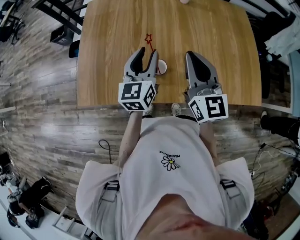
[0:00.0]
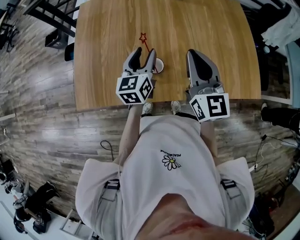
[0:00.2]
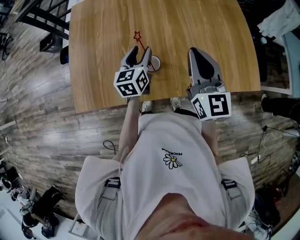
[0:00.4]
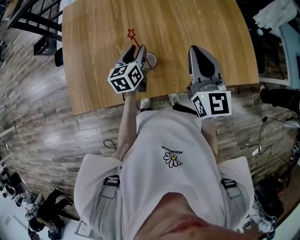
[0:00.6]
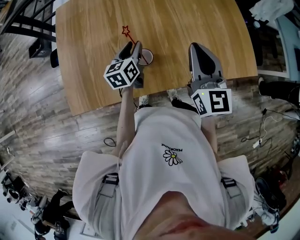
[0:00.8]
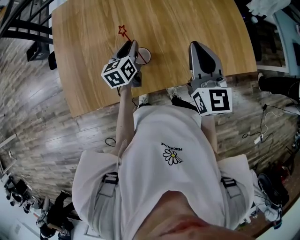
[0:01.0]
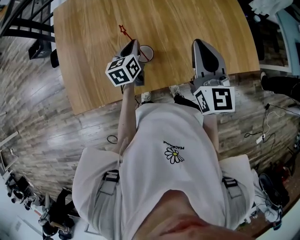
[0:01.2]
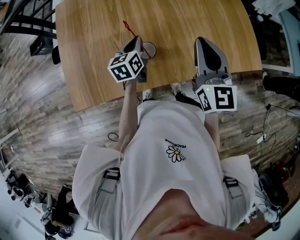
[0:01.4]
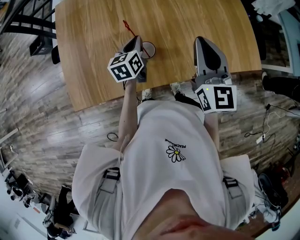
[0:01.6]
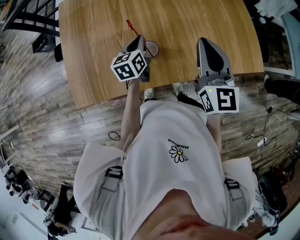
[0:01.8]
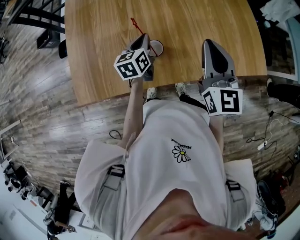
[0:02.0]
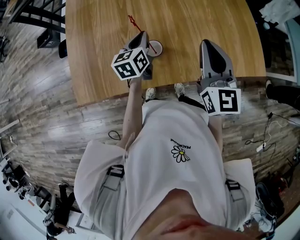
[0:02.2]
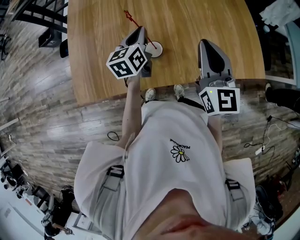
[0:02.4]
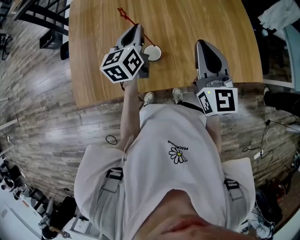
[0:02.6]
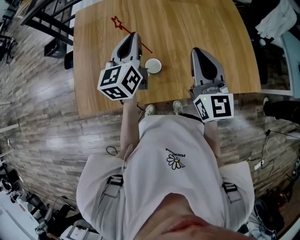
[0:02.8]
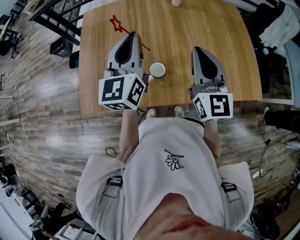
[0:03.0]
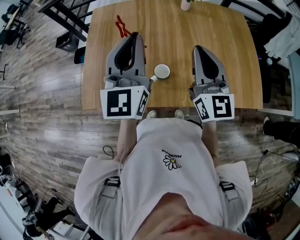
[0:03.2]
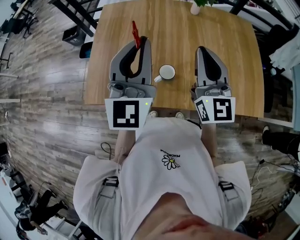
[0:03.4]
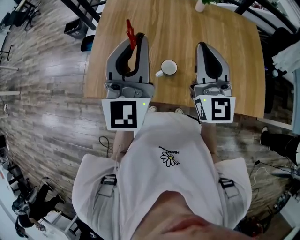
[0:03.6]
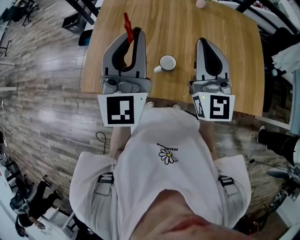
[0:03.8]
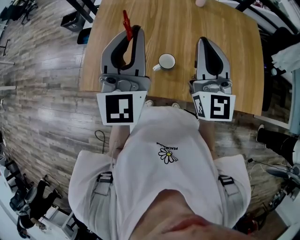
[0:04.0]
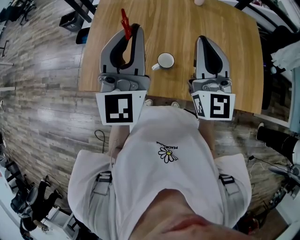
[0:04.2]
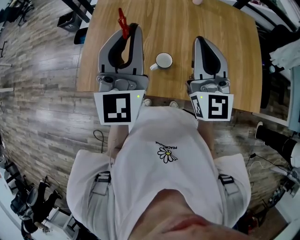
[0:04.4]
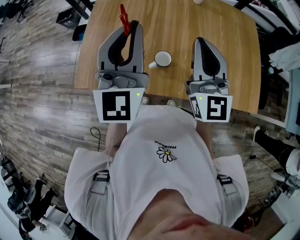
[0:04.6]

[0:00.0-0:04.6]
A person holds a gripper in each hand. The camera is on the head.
0:00.0 to 0:01.6: The right gripper travels to the right by roughly 5 cm, while the left gripper heads downward, covering roughly 15 cm, turns by some 30 degrees, and closes up.
0:01.6 to 0:03.0: The right gripper shifts by roughly 5 cm. Meanwhile the left gripper moves upward, about 25 cm, and tips its fingers upward by about 30 degrees.
0:03.0 to 0:04.6: The left gripper travels upward and backward by roughly 10 cm, and swivels about 20 degrees, while the right gripper shifts roughly 5 cm to the left.

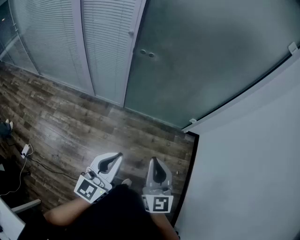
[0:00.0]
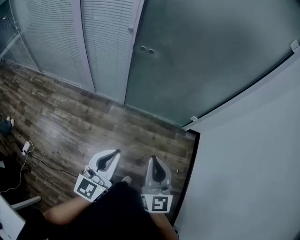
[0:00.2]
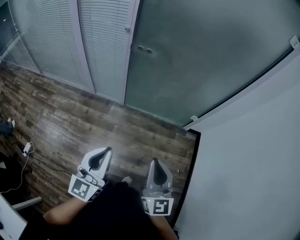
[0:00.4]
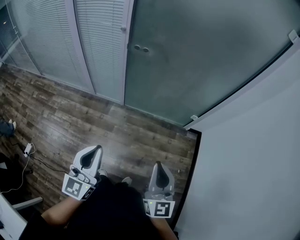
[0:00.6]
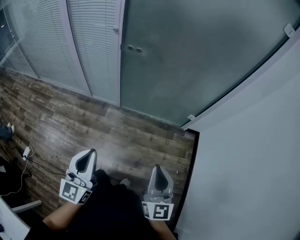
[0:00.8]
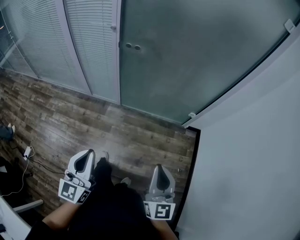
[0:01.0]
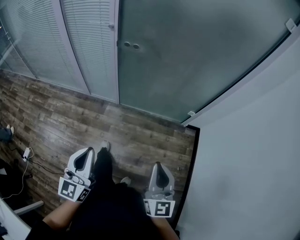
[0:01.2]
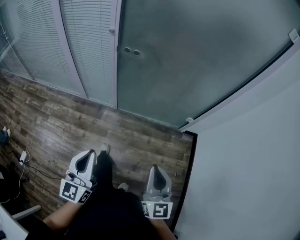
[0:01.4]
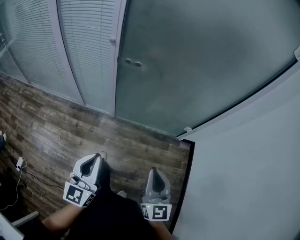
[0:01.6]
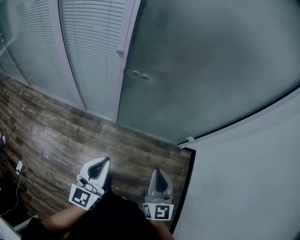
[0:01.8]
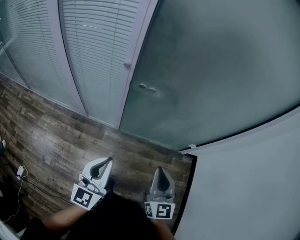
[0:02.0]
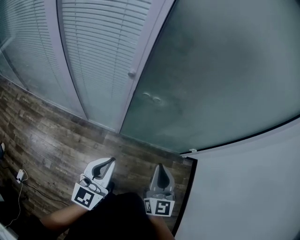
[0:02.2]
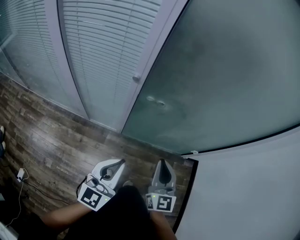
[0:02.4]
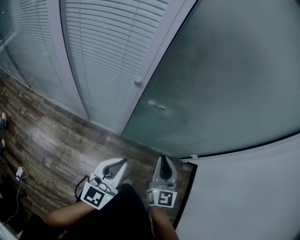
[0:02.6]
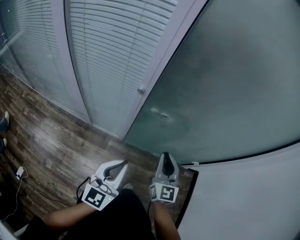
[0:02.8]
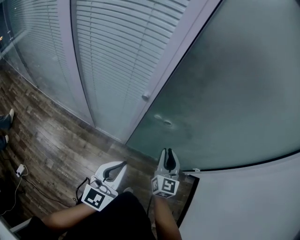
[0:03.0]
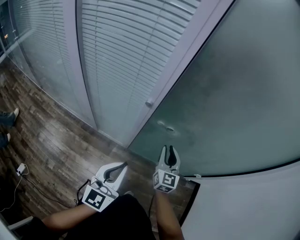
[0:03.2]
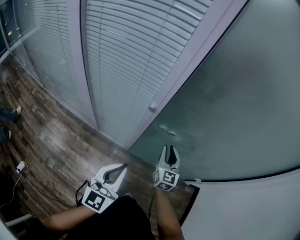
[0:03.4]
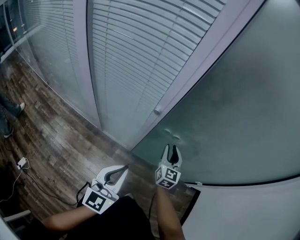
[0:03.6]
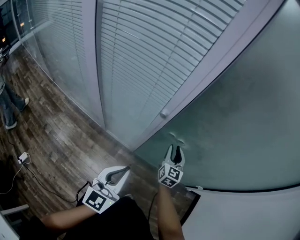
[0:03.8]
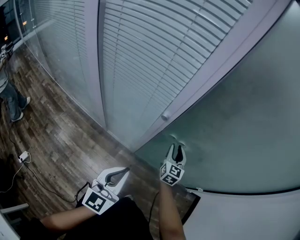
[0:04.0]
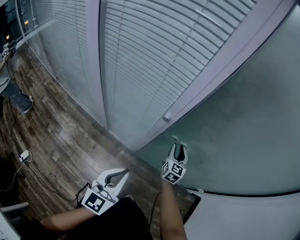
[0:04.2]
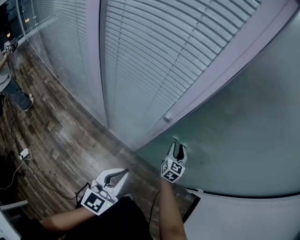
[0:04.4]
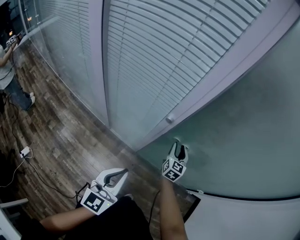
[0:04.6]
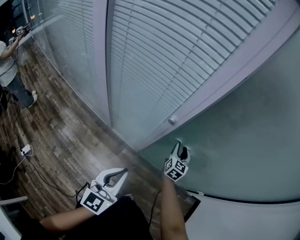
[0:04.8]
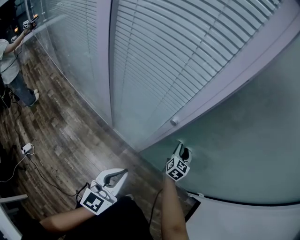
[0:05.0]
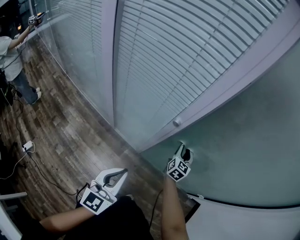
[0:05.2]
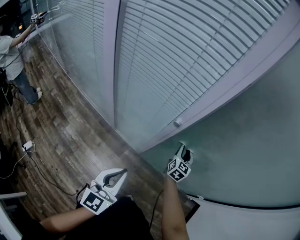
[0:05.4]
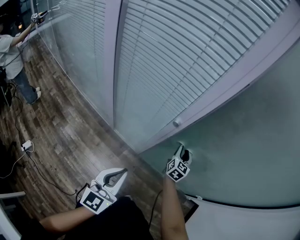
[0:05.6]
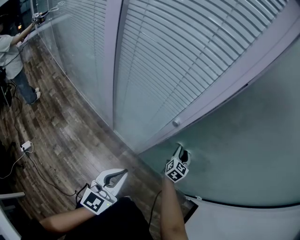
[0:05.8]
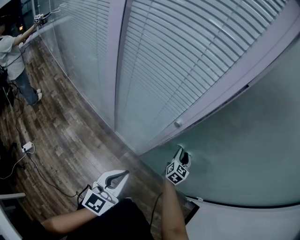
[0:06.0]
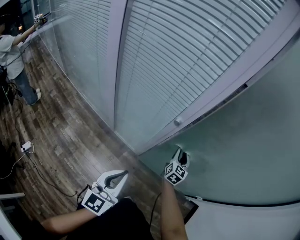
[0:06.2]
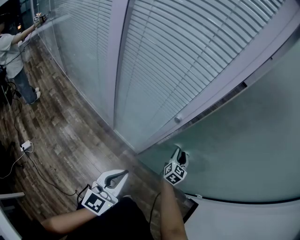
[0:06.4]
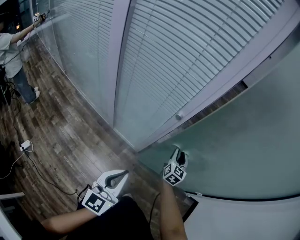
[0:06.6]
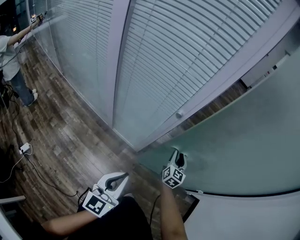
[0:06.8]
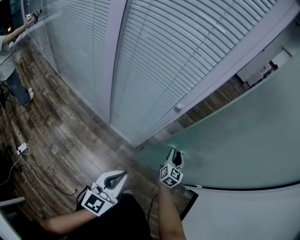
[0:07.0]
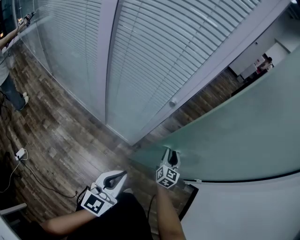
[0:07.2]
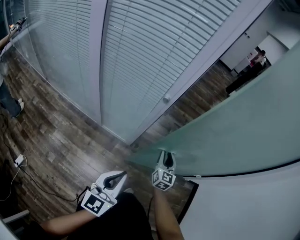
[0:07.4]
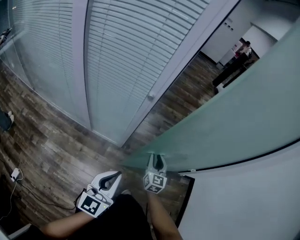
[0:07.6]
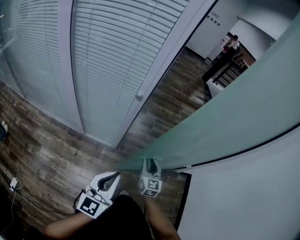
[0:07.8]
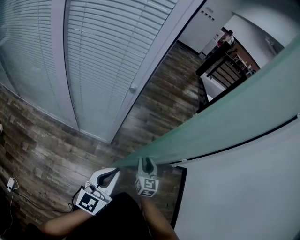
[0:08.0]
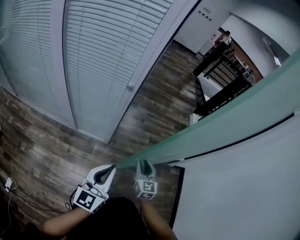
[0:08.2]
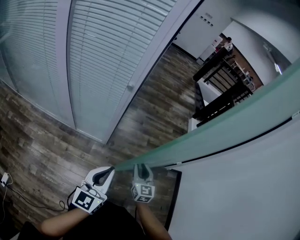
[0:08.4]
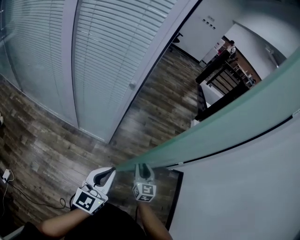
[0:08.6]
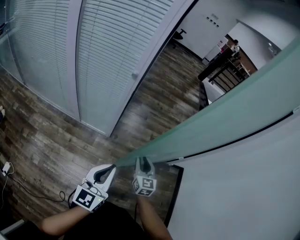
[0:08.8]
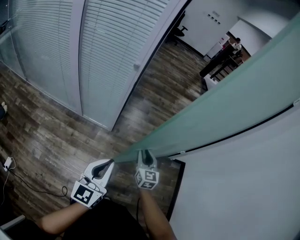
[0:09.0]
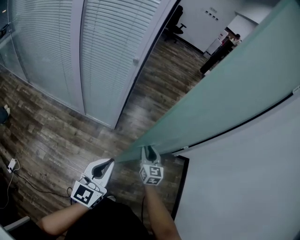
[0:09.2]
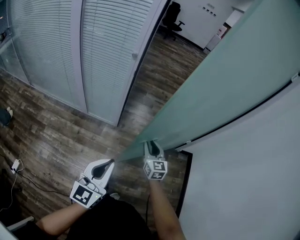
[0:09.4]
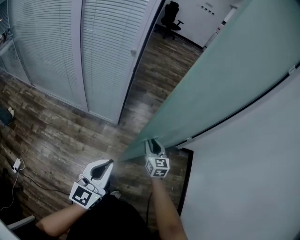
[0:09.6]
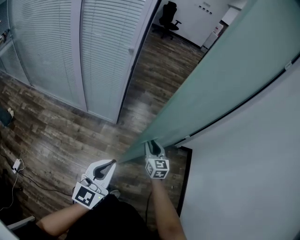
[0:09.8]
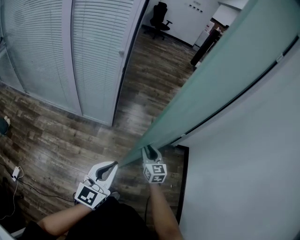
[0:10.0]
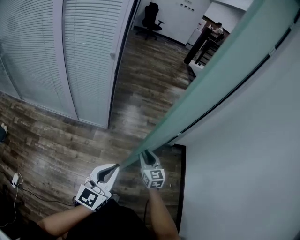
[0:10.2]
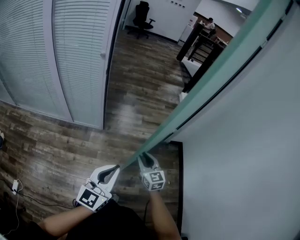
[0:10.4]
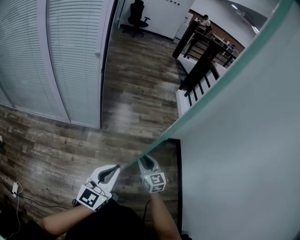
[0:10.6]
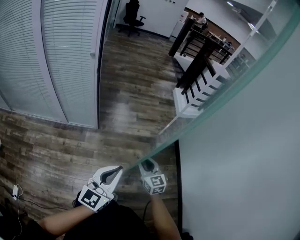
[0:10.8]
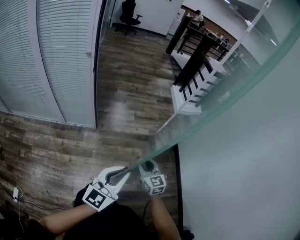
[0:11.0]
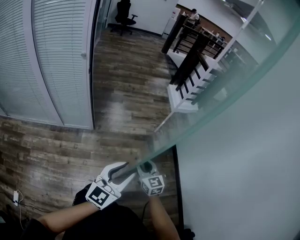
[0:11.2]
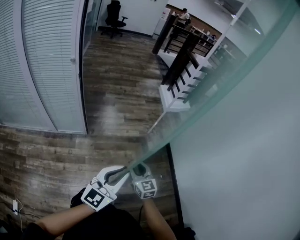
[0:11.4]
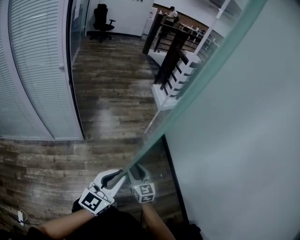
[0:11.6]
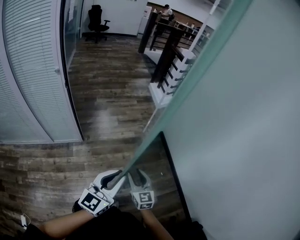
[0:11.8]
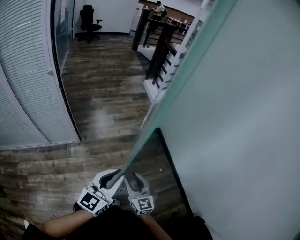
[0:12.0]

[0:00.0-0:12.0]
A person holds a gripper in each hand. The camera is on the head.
0:00.0 to 0:01.6: Both grippers move forward, some 10 cm.
0:01.6 to 0:03.0: The left gripper travels forward by approximately 20 cm, while the right gripper moves forward, some 35 cm.
0:03.0 to 0:04.4: The right gripper shifts roughly 20 cm forward and downward.
0:04.4 to 0:06.0: The grippers make only small movements.
0:06.0 to 0:07.6: The right gripper shifts some 20 cm backward. Meanwhile the left gripper is displaced backward by roughly 5 cm.
0:07.6 to 0:09.0: The left gripper heads backward and to the right, covering some 10 cm. Meanwhile the right gripper is displaced backward by roughly 15 cm.
0:09.0 to 0:10.4: Both grippers move backward and to the right, approximately 15 cm.
0:10.4 to 0:12.0: The left gripper heads to the right, covering some 10 cm, and turns by approximately 20 degrees, while the right gripper is displaced backward and to the right by about 15 cm, and changes its angle by approximately 20 degrees.

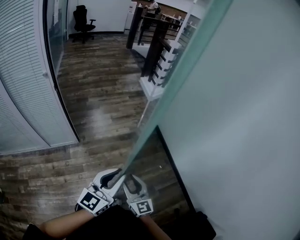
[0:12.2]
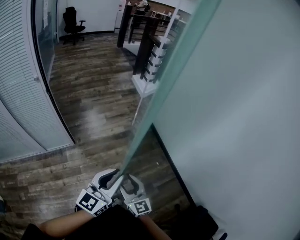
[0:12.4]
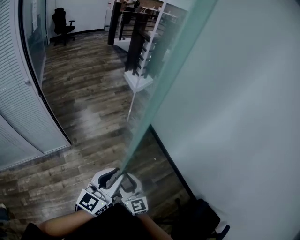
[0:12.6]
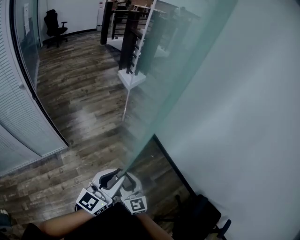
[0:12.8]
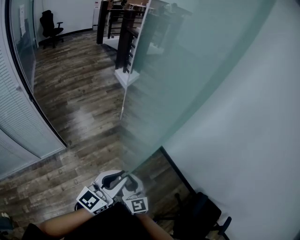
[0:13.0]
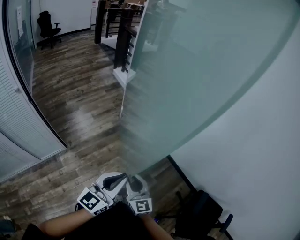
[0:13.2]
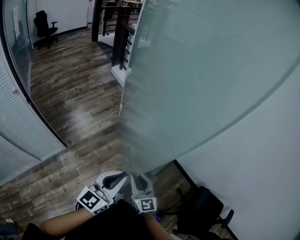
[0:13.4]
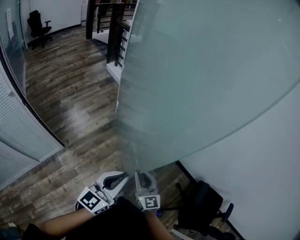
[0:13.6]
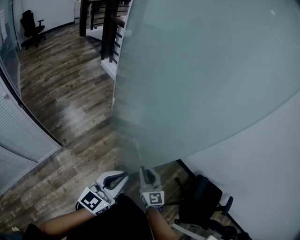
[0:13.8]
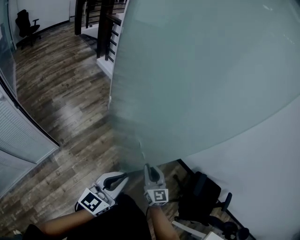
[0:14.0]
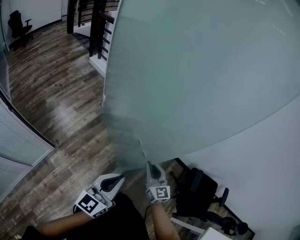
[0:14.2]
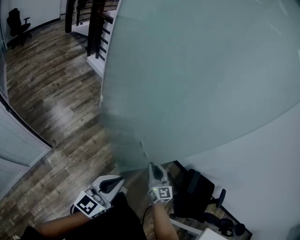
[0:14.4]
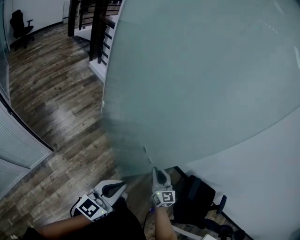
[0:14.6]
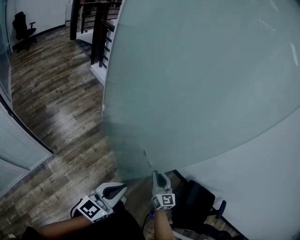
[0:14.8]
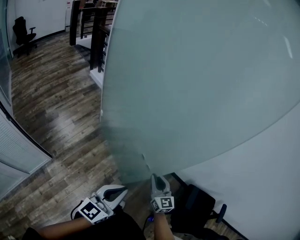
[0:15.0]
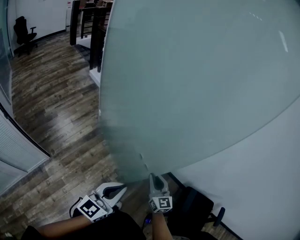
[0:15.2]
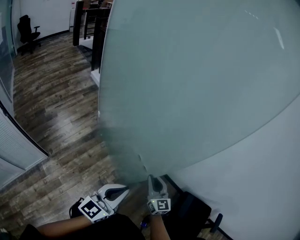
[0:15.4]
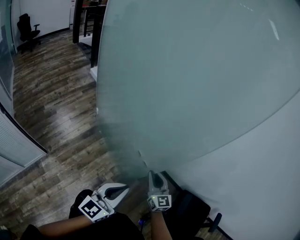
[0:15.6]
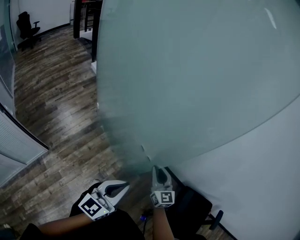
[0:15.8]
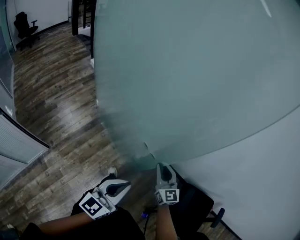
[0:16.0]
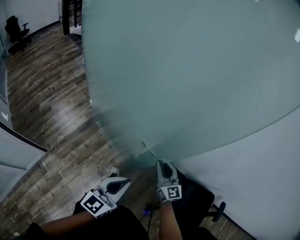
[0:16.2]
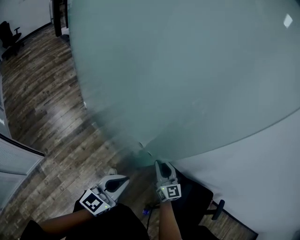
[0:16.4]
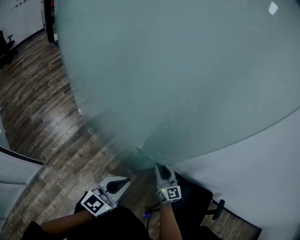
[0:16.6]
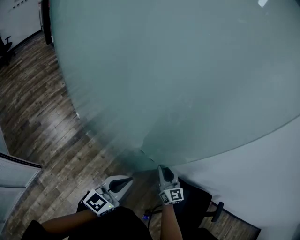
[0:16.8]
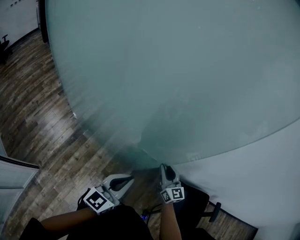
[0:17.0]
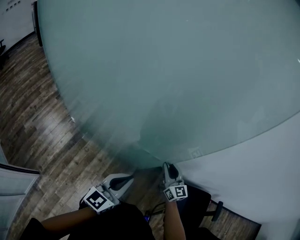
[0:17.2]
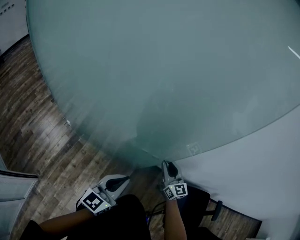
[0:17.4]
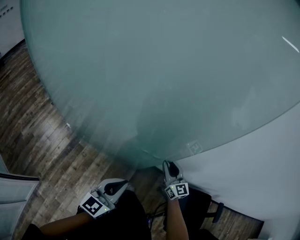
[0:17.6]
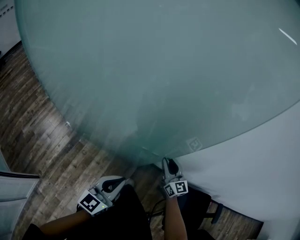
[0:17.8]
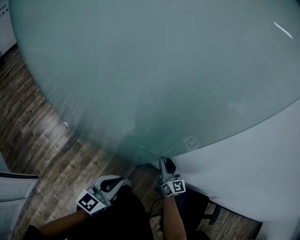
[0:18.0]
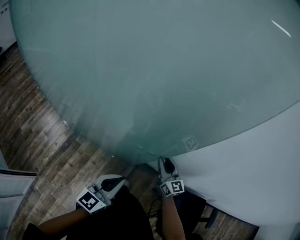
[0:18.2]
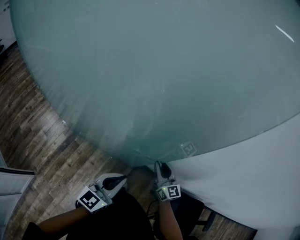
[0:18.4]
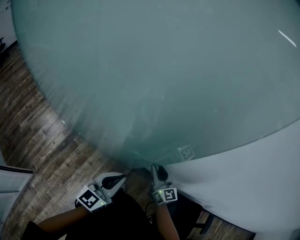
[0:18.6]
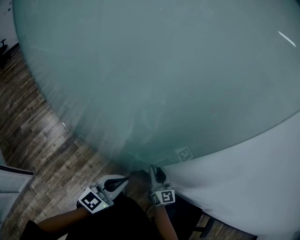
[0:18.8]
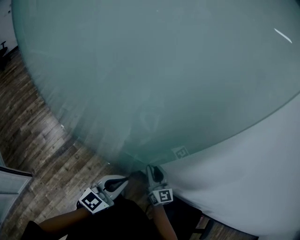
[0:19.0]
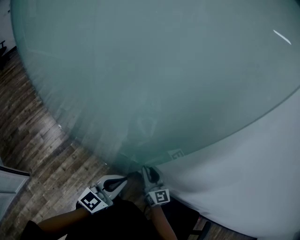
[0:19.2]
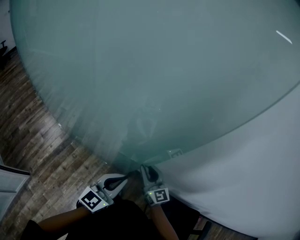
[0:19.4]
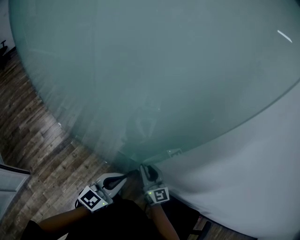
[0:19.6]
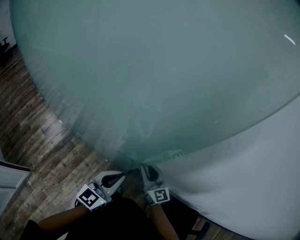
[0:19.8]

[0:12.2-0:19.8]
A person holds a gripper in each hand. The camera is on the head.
0:12.2 to 0:13.8: The left gripper moves about 5 cm, and rotates some 30 degrees. The right gripper shifts by approximately 10 cm, rotates about 30 degrees, and closes.
0:13.8 to 0:15.2: The right gripper moves to the right and forward, some 15 cm, while the left gripper goes about 10 cm to the right and forward.
0:15.2 to 0:16.8: The grippers both shift forward and to the right by roughly 20 cm.
0:16.8 to 0:18.2: Both grippers move forward, approximately 15 cm.
0:18.2 to 0:19.8: The left gripper shifts approximately 10 cm forward and to the right.
